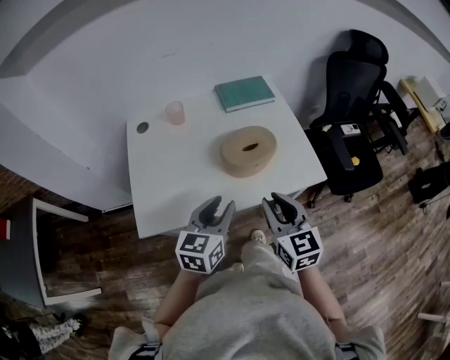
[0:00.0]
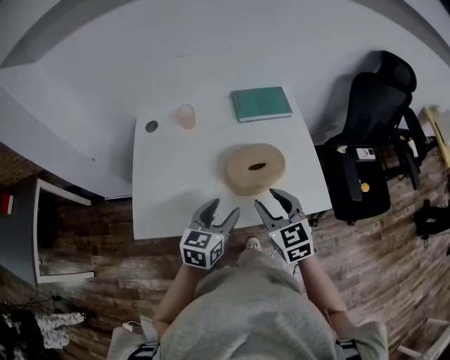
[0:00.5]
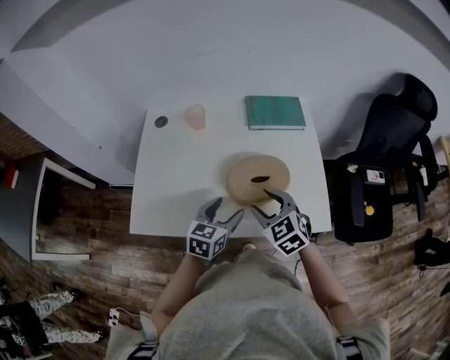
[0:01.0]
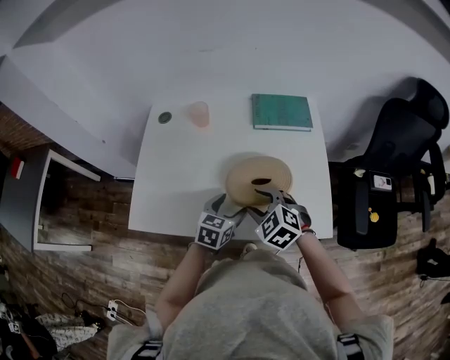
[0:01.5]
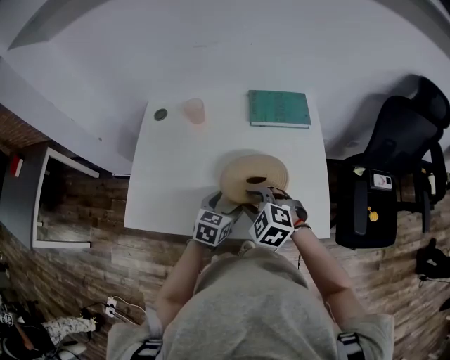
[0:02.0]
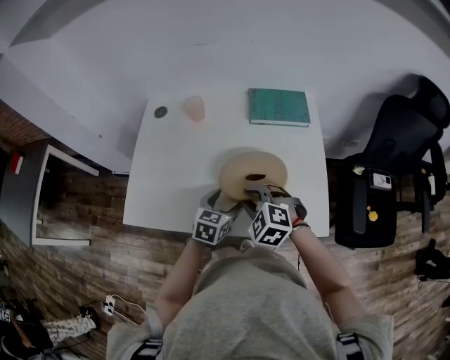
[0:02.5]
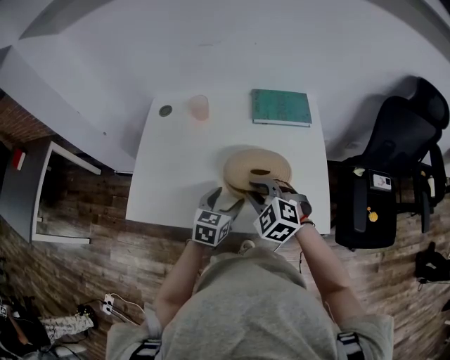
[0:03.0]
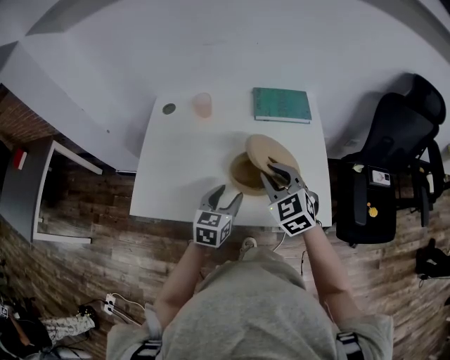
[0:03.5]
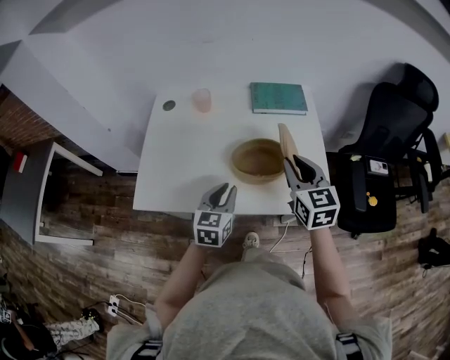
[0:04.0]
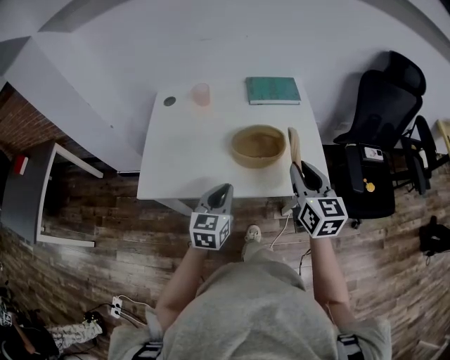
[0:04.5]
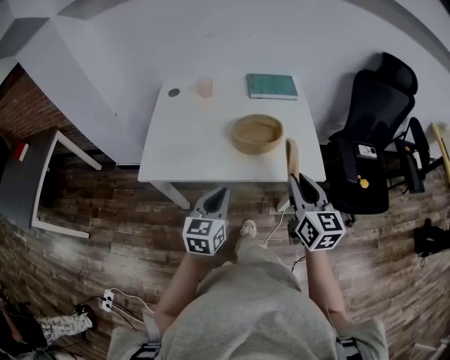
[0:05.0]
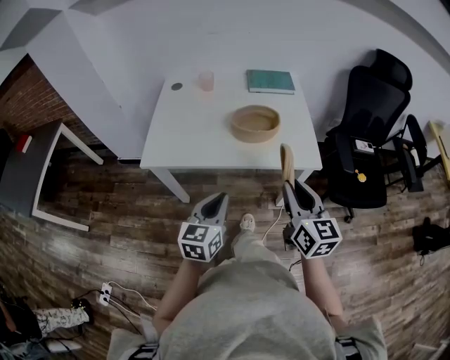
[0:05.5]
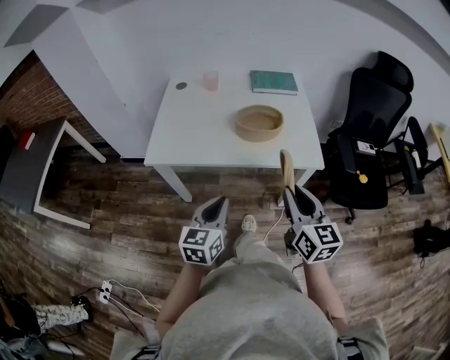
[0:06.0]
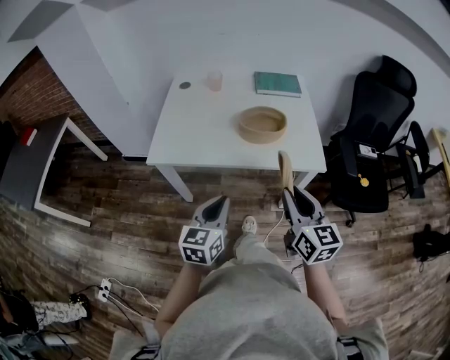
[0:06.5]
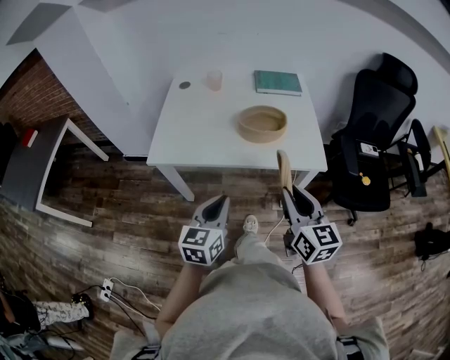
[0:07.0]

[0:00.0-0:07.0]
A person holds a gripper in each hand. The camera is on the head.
0:00.0 to 0:02.0: The left gripper heads downward and forward, covering approximately 20 cm, swivels some 20 degrees, and opens its fingers. The right gripper goes approximately 20 cm forward and downward, and tips its fingers downward by roughly 30 degrees.
0:02.0 to 0:03.5: Both grippers move upward, about 10 cm. The right gripper changes its angle by approximately 30 degrees.
0:03.5 to 0:05.0: The two grippers go about 20 cm backward. The left gripper closes its fingers. The right gripper turns by some 50 degrees.
0:05.0 to 0:07.0: Both grippers travel together backward, some 10 cm.

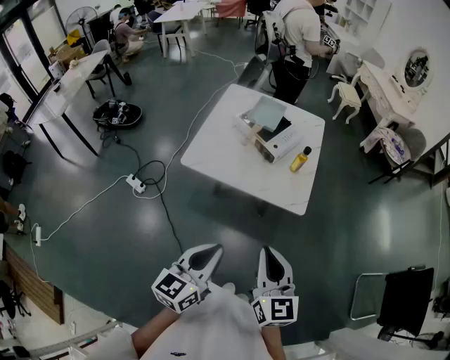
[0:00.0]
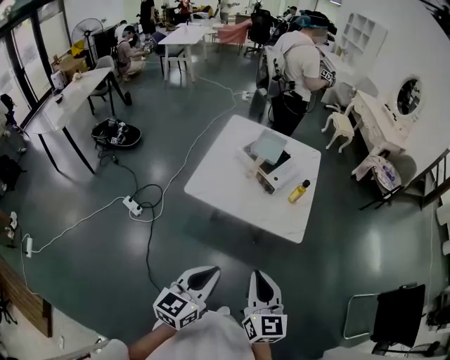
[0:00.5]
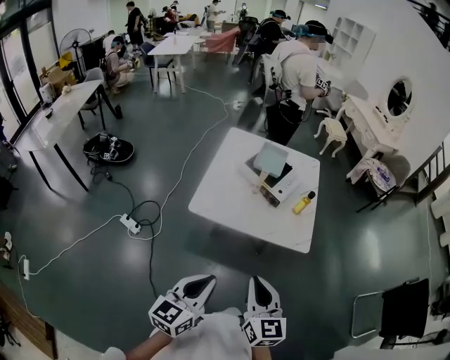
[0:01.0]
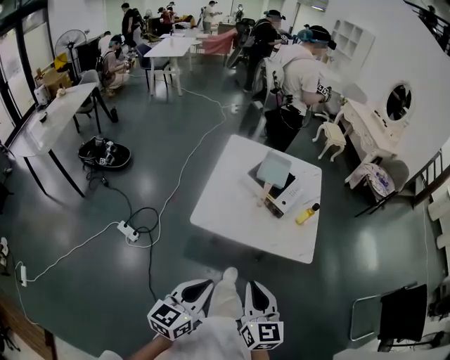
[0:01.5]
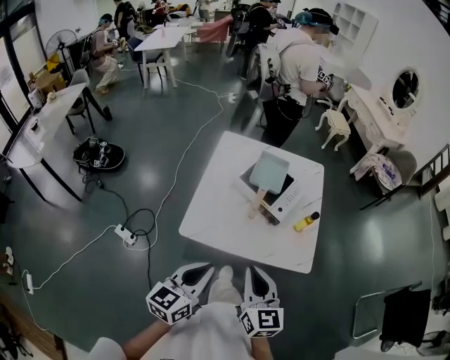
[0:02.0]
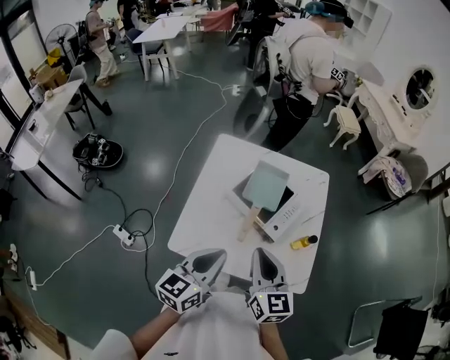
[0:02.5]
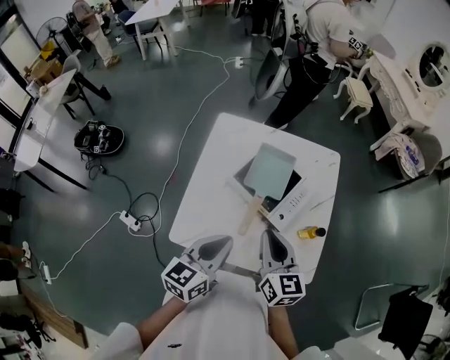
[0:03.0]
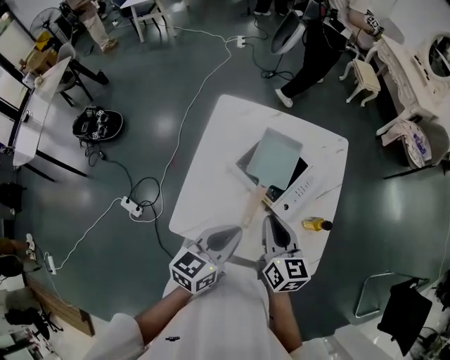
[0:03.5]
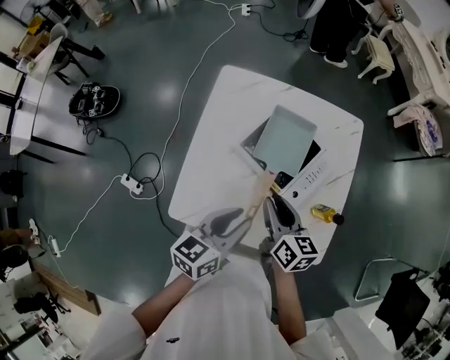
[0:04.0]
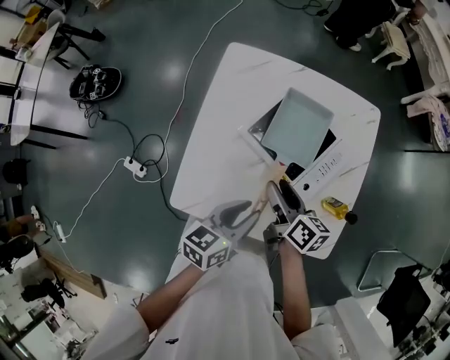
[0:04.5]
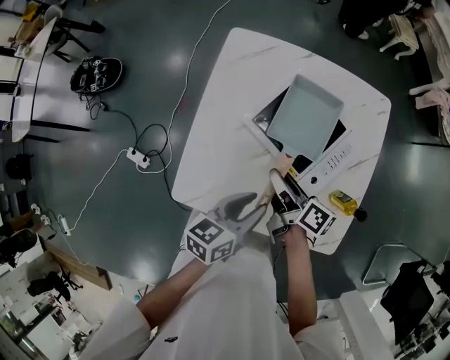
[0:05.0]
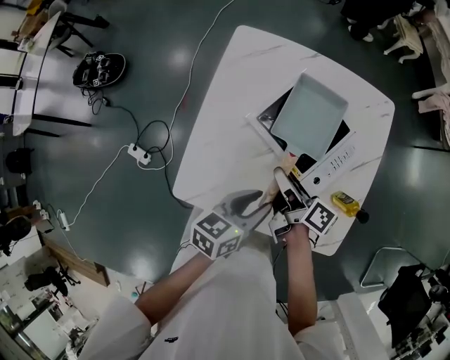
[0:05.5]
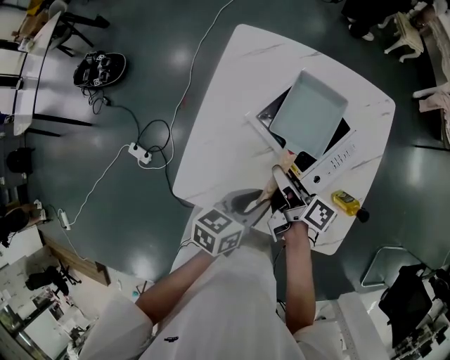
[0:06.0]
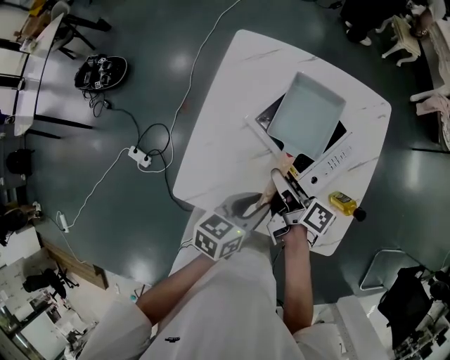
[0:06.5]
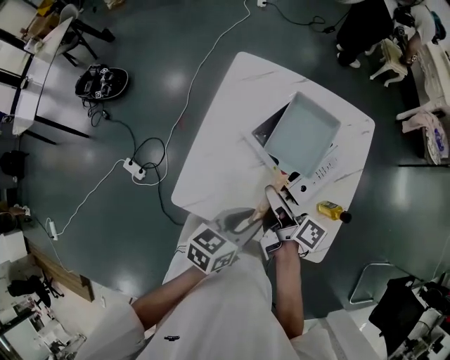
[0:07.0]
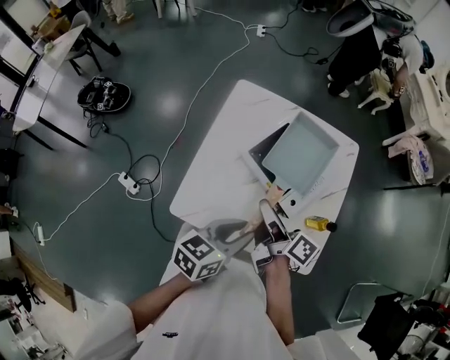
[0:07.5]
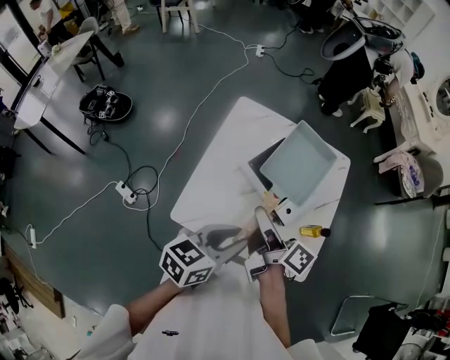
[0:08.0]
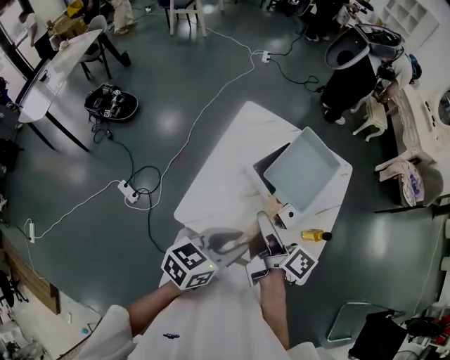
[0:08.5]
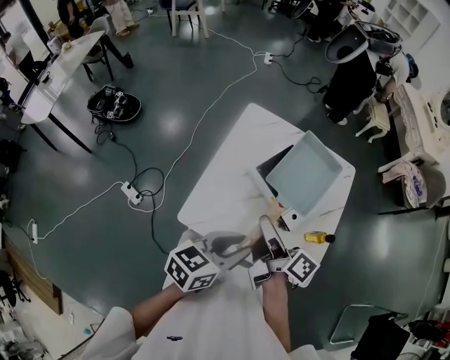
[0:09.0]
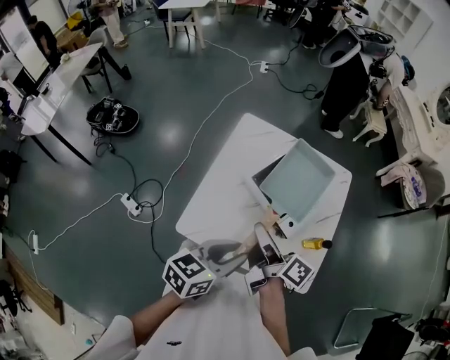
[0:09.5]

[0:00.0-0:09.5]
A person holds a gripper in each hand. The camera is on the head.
0:00.0 to 0:02.0: Both grippers move forward and to the left, some 25 cm.
0:02.0 to 0:04.0: The right gripper shifts approximately 35 cm forward and downward, rotates about 30 degrees, and opens its fingers. Meanwhile the left gripper shifts about 25 cm forward, and opens.
0:04.0 to 0:05.5: The two grippers go about 10 cm downward. The right gripper rotates roughly 40 degrees.
0:05.5 to 0:07.5: The grippers both shift upward and backward by some 15 cm.
0:07.5 to 0:09.5: Both grippers travel together upward, about 5 cm.

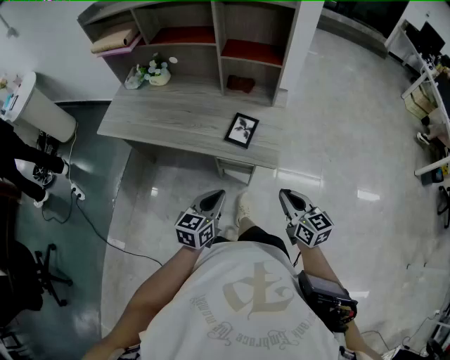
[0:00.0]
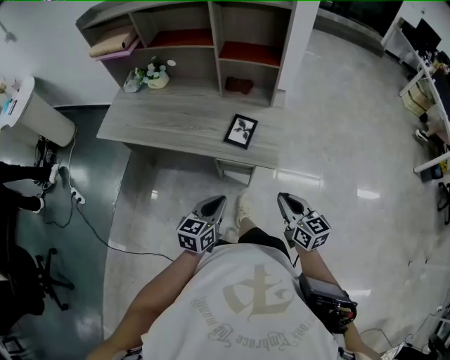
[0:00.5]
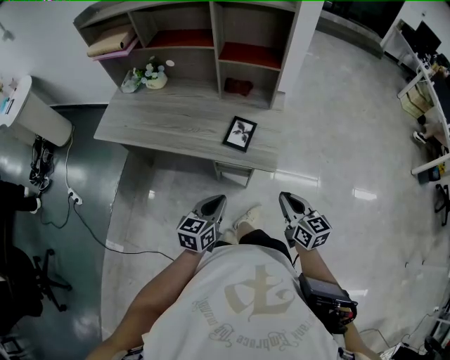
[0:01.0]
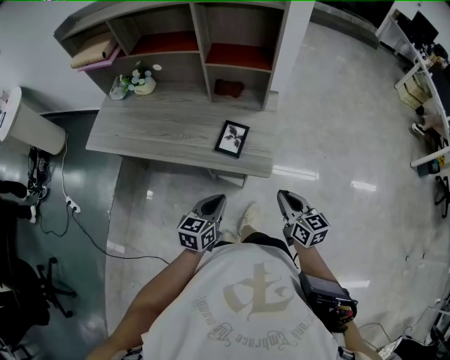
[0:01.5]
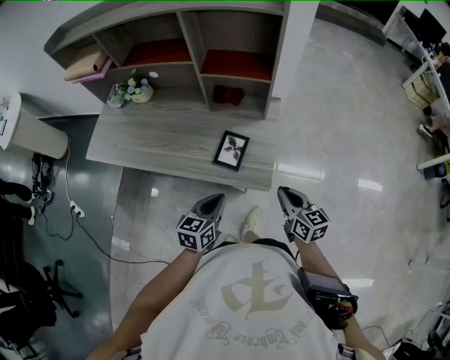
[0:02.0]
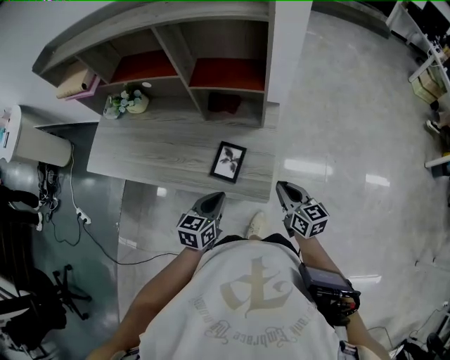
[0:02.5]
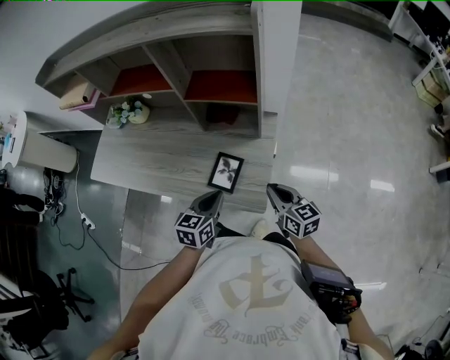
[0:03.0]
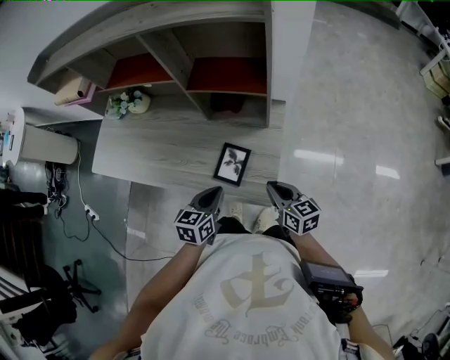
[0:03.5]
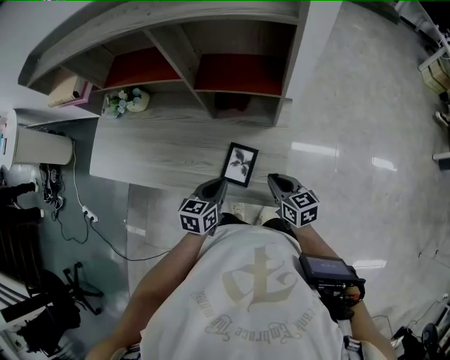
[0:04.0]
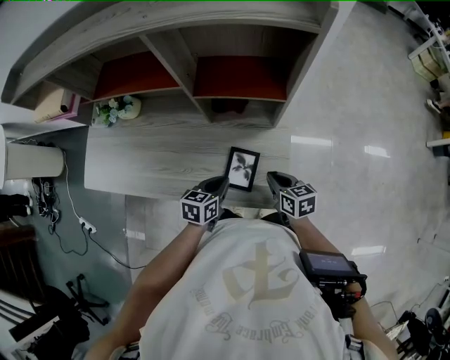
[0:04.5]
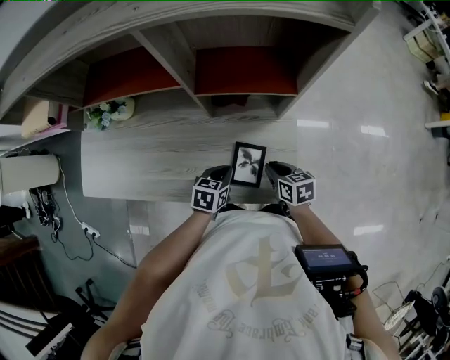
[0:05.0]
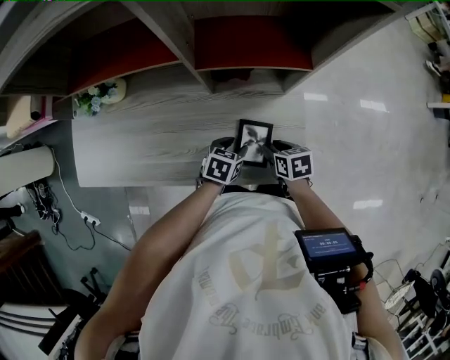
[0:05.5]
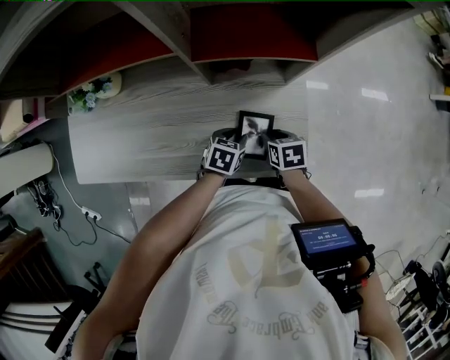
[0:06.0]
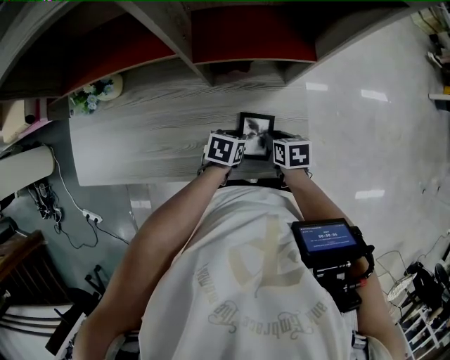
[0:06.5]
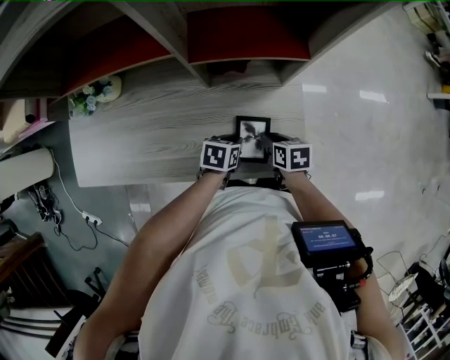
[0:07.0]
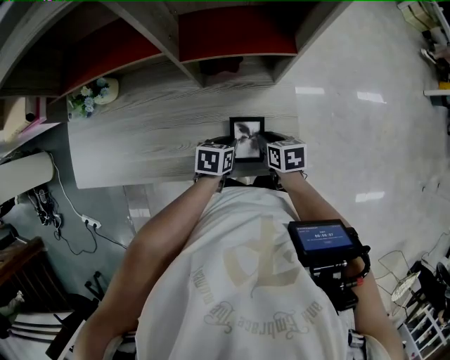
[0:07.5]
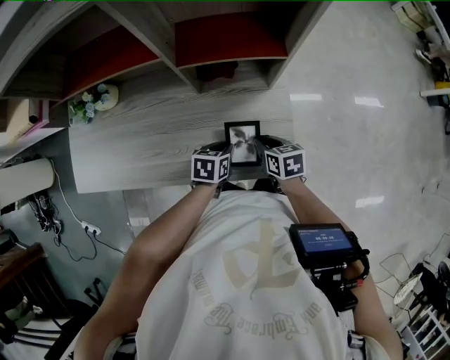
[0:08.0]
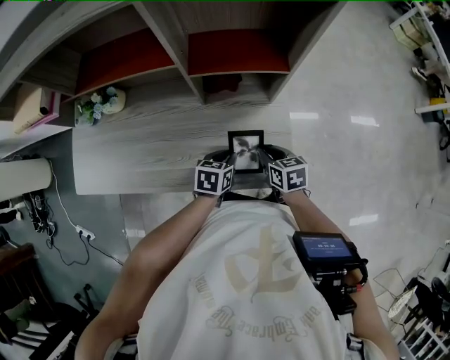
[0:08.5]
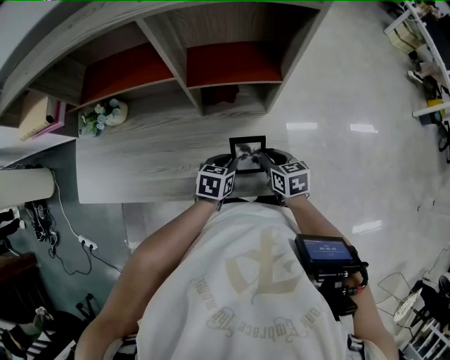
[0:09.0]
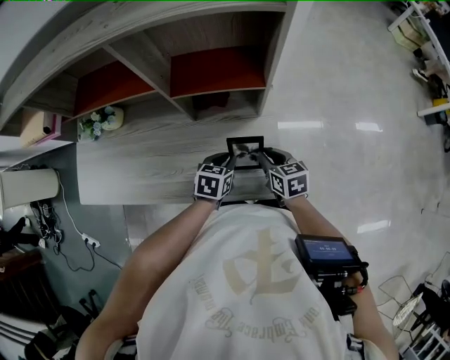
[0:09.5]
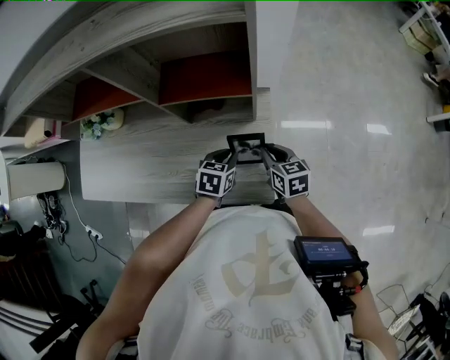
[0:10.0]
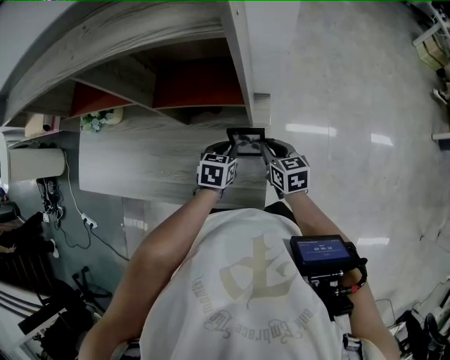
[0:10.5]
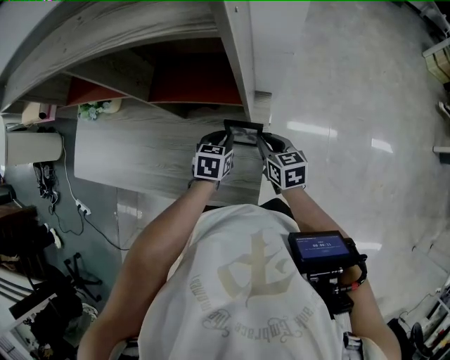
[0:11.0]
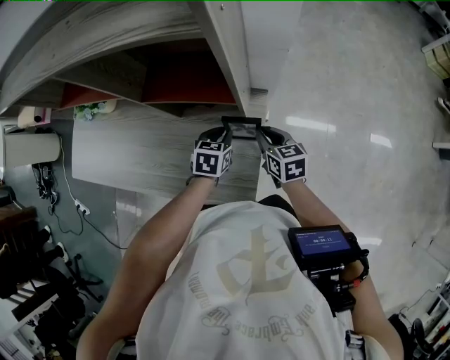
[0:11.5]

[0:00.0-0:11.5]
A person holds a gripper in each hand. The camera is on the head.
0:00.0 to 0:02.0: The grippers both shift forward by some 15 cm.
0:02.0 to 0:04.0: Both grippers move forward, roughly 15 cm.
0:04.0 to 0:06.0: The right gripper travels downward and to the left by some 15 cm, points its fingers roughly 30 degrees further downward, and opens. Meanwhile the left gripper shifts some 20 cm downward and forward, swivels approximately 30 degrees, and opens up.
0:06.0 to 0:07.5: The grippers stay close to where they were, moving slightly.
0:07.5 to 0:09.5: Both grippers move upward, approximately 10 cm.
0:09.5 to 0:11.5: Both grippers move forward and to the right, about 15 cm.
